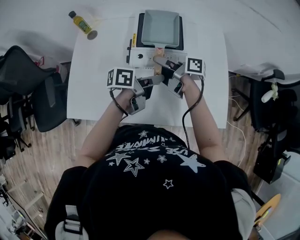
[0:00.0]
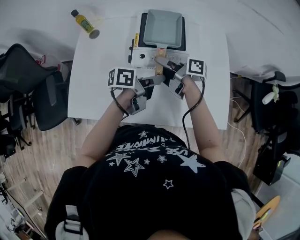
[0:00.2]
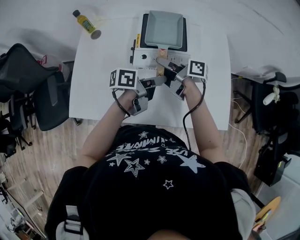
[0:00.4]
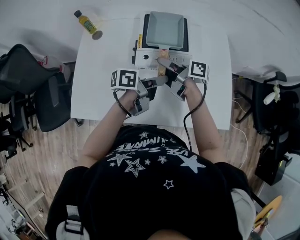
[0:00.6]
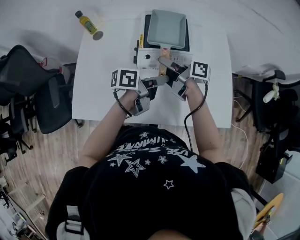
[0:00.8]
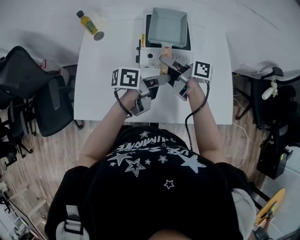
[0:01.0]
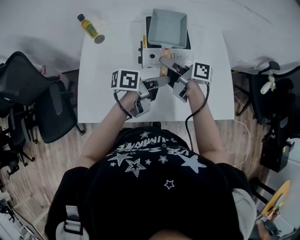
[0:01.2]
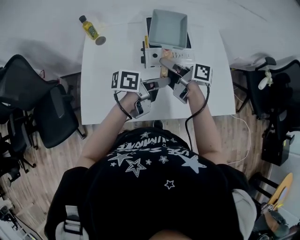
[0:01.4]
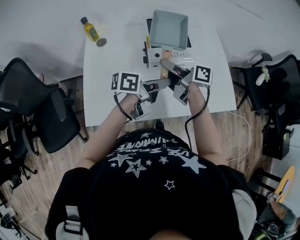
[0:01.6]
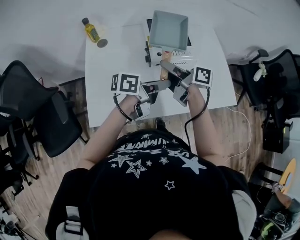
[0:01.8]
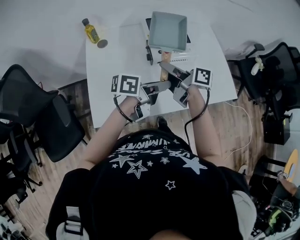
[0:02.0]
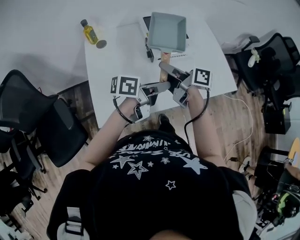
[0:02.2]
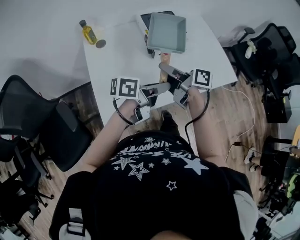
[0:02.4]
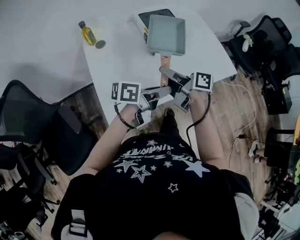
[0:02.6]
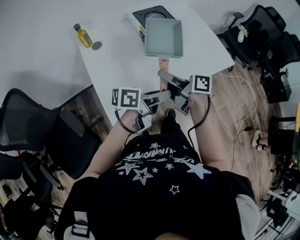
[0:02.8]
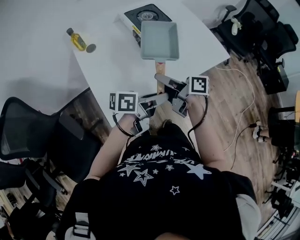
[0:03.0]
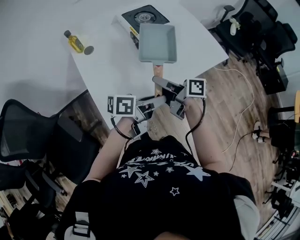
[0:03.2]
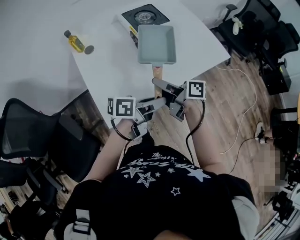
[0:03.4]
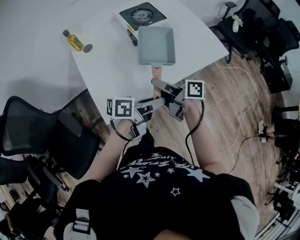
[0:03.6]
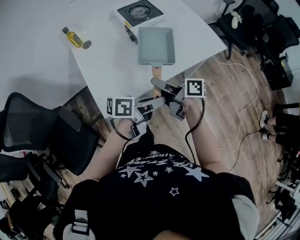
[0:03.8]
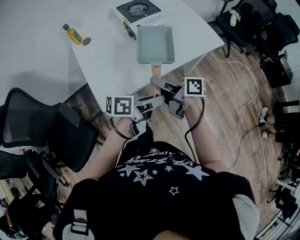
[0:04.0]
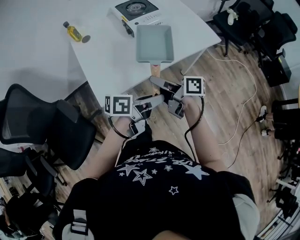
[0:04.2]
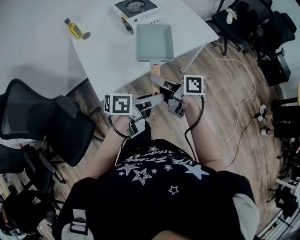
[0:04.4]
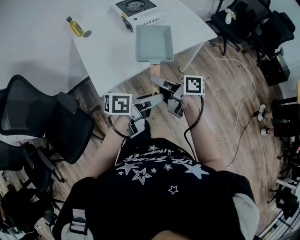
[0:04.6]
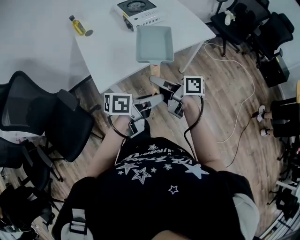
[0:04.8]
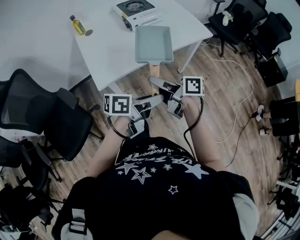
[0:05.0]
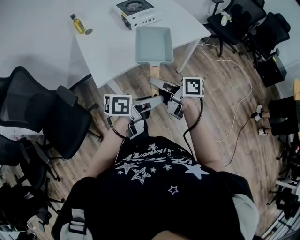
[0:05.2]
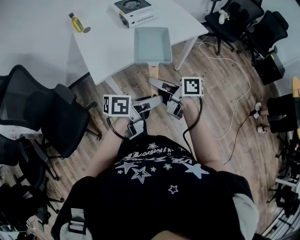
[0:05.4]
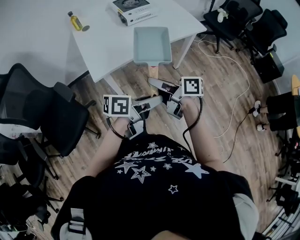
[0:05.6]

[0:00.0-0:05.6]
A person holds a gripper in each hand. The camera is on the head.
0:00.0 to 0:01.4: The right gripper moves upward and backward, approximately 10 cm; the left gripper shifts some 10 cm to the left, backward and upward.
0:01.4 to 0:02.8: The two grippers go some 20 cm backward and to the left. The left gripper swivels some 20 degrees.
0:02.8 to 0:04.2: The left gripper shifts by about 20 cm. Meanwhile the right gripper shifts by some 20 cm.
0:04.2 to 0:05.6: The right gripper ends up roughly 15 cm from where it was, while the left gripper changes place by roughly 15 cm.

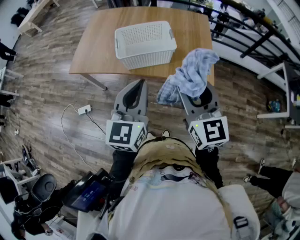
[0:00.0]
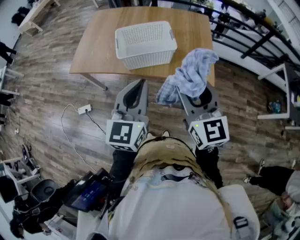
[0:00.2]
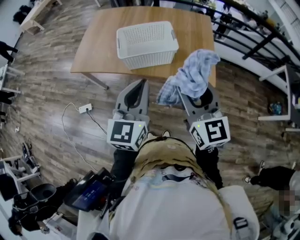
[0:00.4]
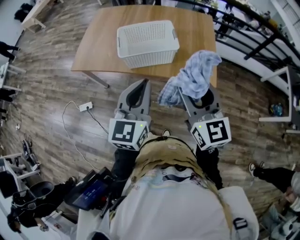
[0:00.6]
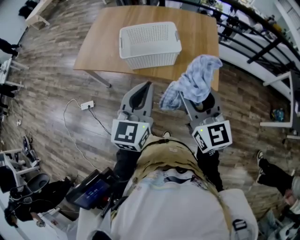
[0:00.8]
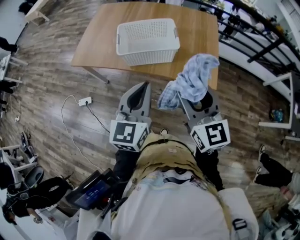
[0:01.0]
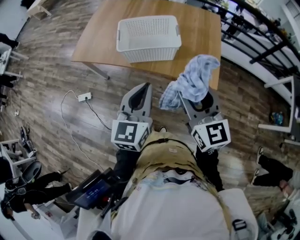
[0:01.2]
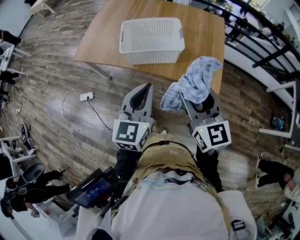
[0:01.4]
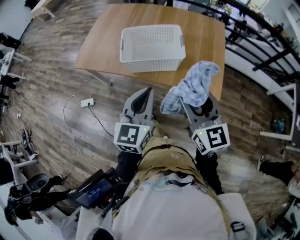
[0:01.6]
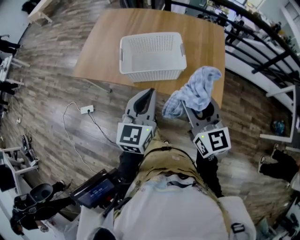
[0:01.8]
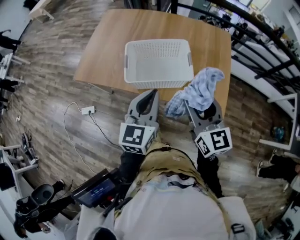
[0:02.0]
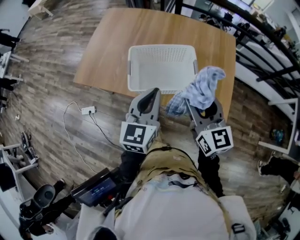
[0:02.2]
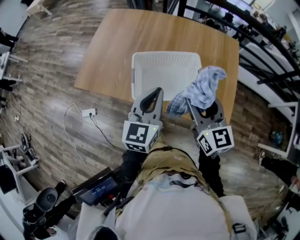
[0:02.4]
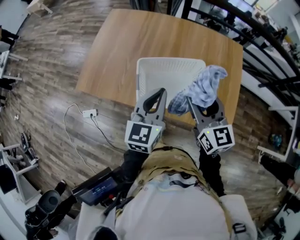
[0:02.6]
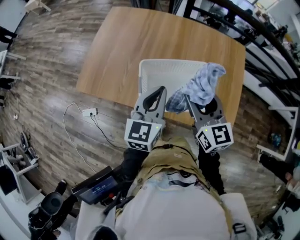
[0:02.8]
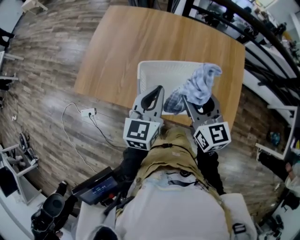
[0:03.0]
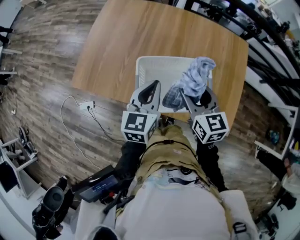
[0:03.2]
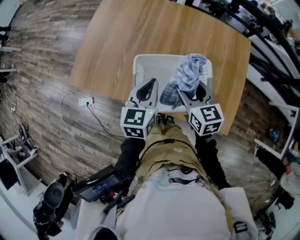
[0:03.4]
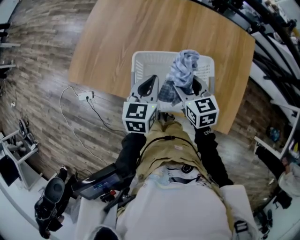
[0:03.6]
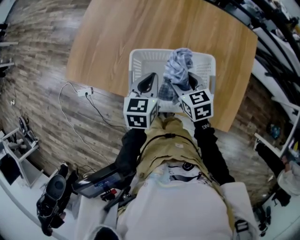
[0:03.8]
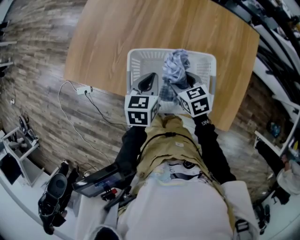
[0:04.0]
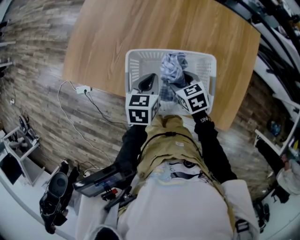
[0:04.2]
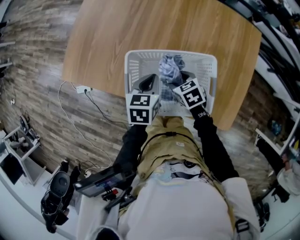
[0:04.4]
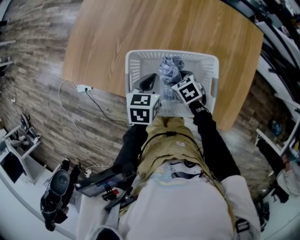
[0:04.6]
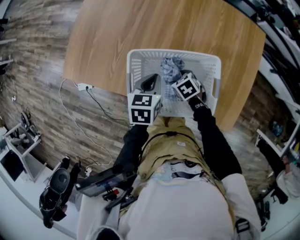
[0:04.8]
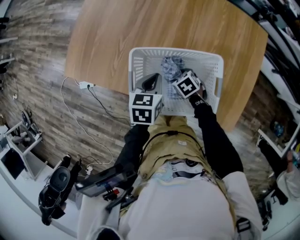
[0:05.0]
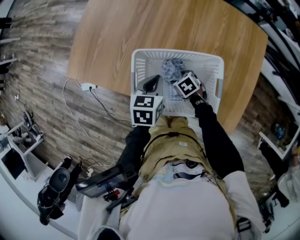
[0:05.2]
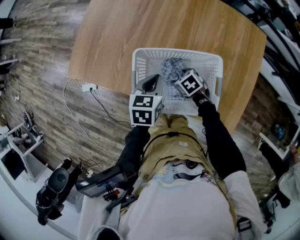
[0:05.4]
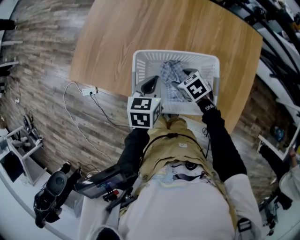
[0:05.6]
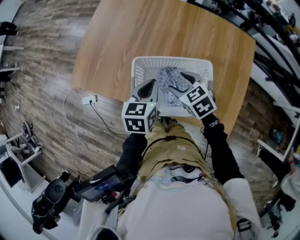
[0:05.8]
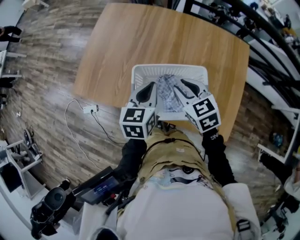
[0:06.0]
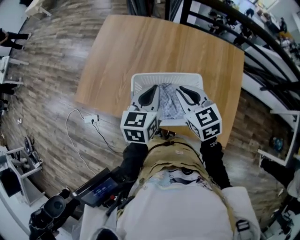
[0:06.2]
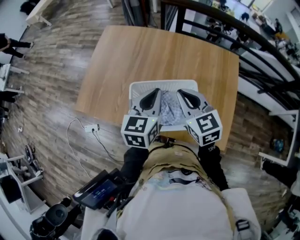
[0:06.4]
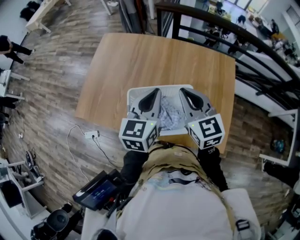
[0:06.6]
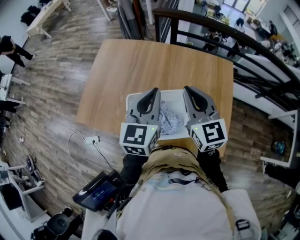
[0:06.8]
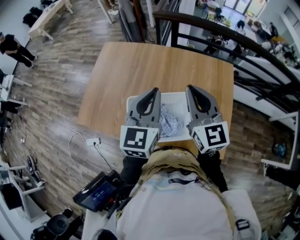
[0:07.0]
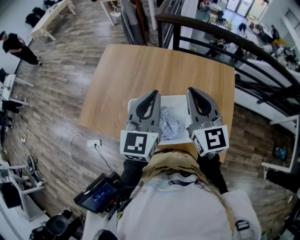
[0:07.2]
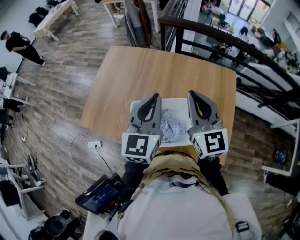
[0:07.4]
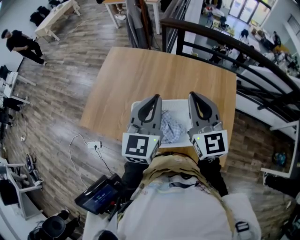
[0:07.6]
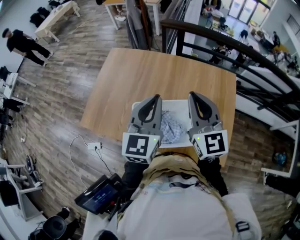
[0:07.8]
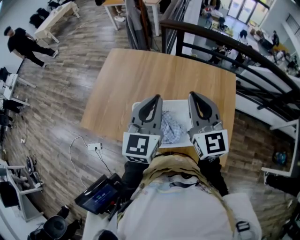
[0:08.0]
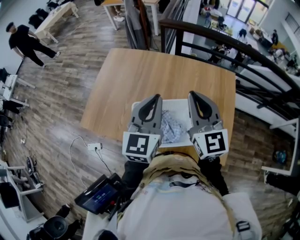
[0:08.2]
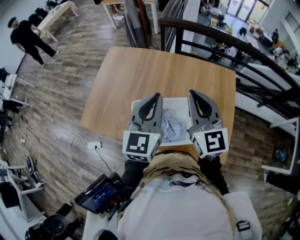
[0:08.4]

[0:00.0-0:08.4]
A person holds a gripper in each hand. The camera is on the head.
0:00.0 to 0:01.4: The right gripper moves about 5 cm. Meanwhile the left gripper shifts roughly 5 cm downward.
0:01.4 to 0:02.8: Both grippers move forward, approximately 30 cm.
0:02.8 to 0:04.2: The grippers both shift downward by roughly 20 cm. The right gripper tilts its fingers some 40 degrees downward, while the left gripper points its fingers some 30 degrees further downward.
0:04.2 to 0:05.6: The right gripper moves about 15 cm downward and comes back.
0:05.6 to 0:07.0: The grippers both shift upward by roughly 30 cm. The left gripper tips its fingers upward by approximately 40 degrees. Meanwhile the right gripper tilts its fingers approximately 60 degrees upward, and closes.
0:07.0 to 0:08.4: The grippers make only small movements.

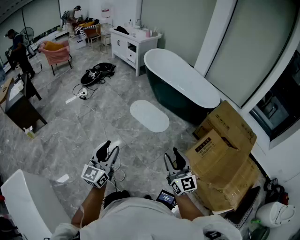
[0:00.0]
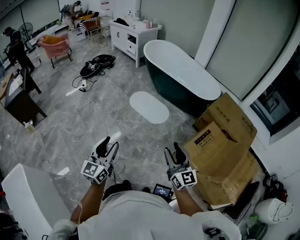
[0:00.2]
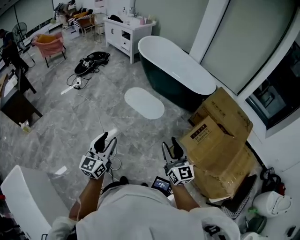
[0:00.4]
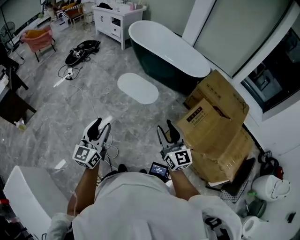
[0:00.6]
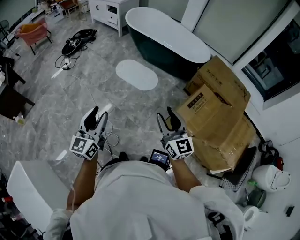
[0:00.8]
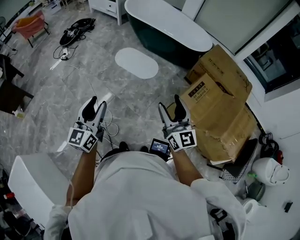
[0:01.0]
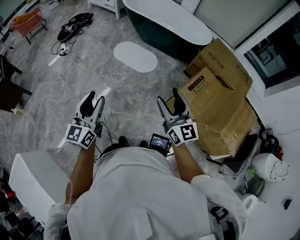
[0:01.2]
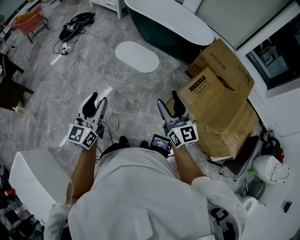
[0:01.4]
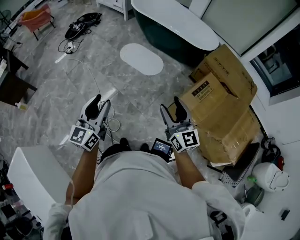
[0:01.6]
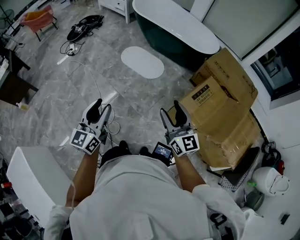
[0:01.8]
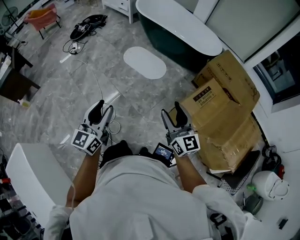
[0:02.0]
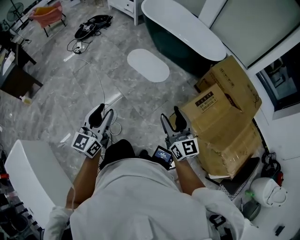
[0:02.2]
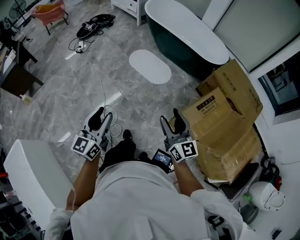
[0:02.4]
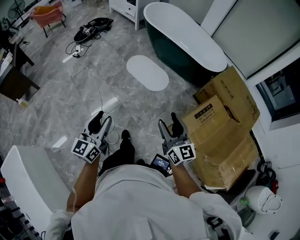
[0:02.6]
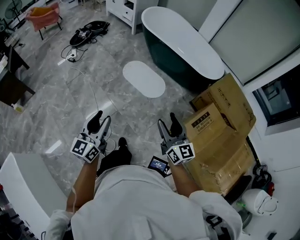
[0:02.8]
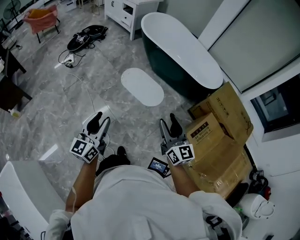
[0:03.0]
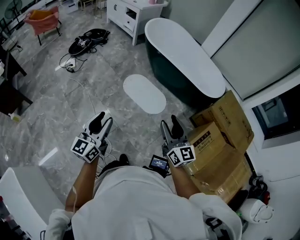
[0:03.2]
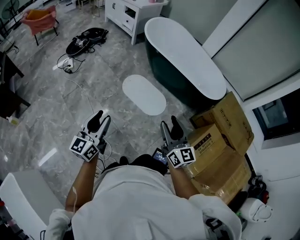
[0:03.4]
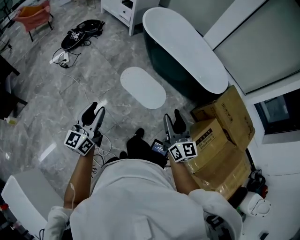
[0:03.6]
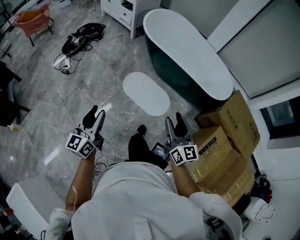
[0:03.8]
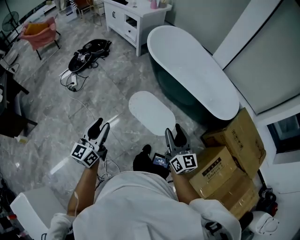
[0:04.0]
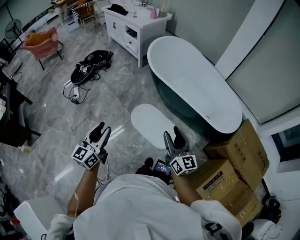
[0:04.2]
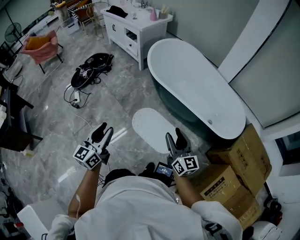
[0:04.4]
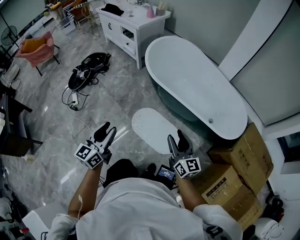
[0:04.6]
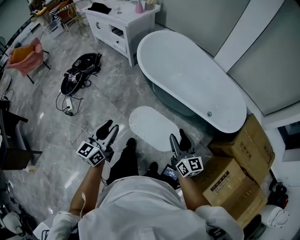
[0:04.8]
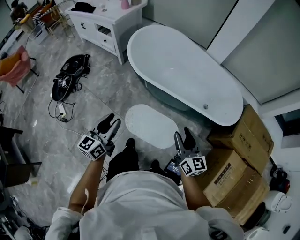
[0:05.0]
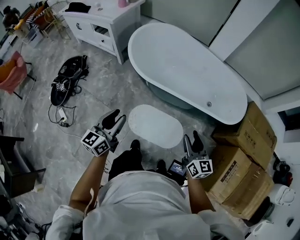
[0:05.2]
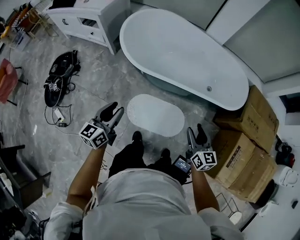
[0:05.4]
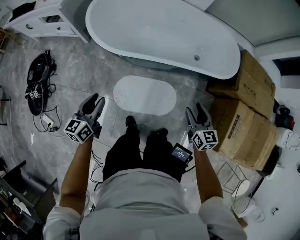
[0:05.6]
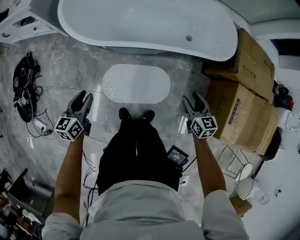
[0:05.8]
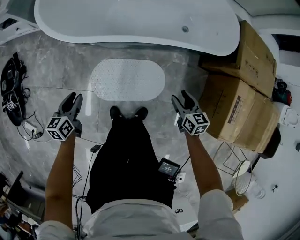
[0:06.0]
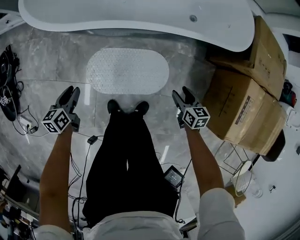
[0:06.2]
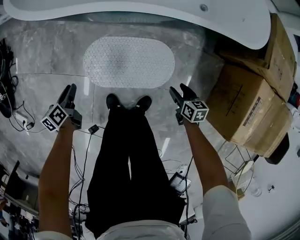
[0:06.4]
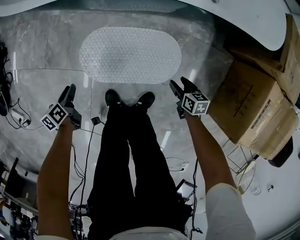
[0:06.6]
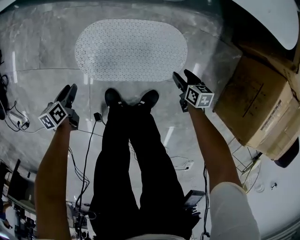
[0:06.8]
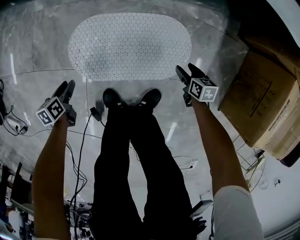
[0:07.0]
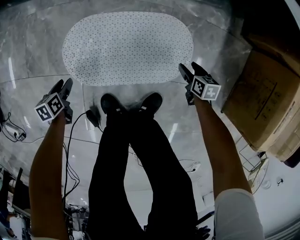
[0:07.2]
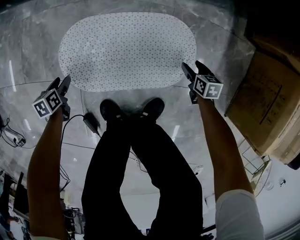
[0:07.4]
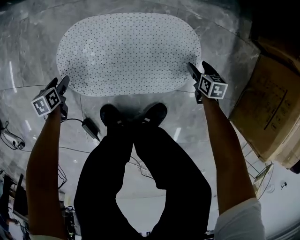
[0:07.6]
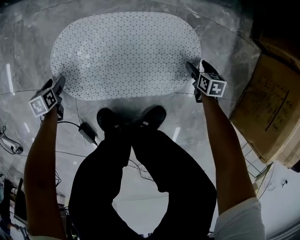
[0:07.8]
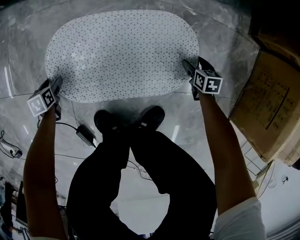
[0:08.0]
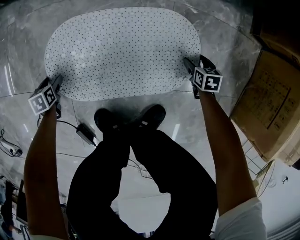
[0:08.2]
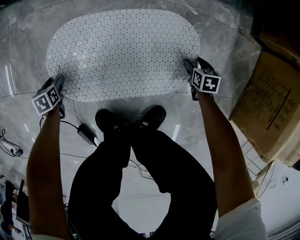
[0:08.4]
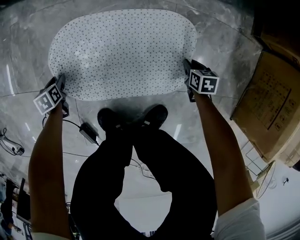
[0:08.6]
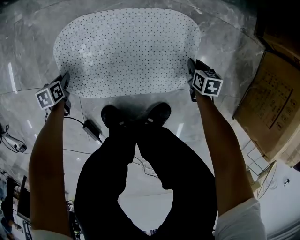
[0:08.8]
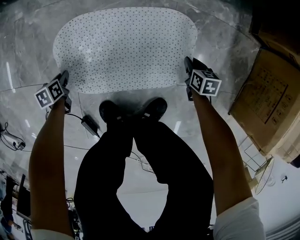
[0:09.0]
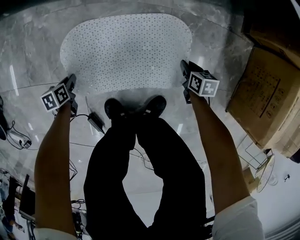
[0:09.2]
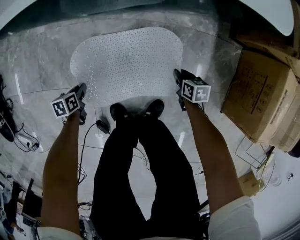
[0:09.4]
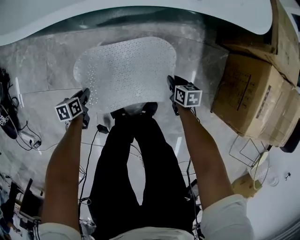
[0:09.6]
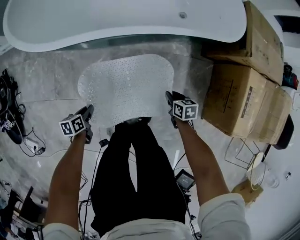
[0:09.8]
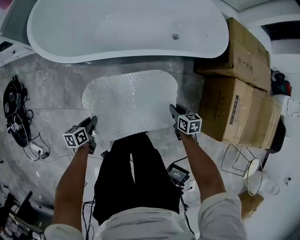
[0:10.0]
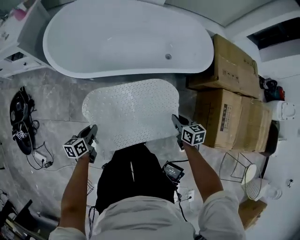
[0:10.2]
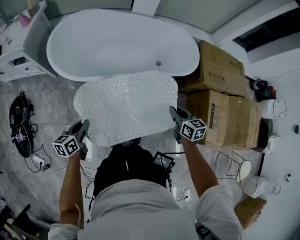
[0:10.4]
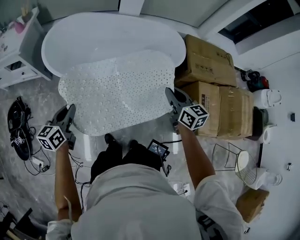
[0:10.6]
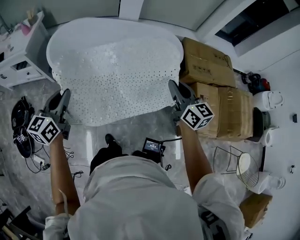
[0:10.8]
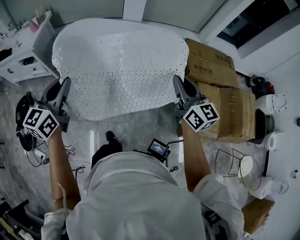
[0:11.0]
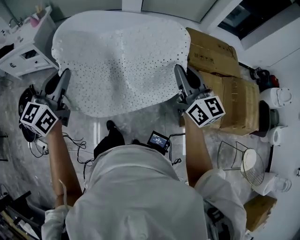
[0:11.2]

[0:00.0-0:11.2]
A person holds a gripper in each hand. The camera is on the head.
0:00.0 to 0:01.6: The right gripper ends up about 5 cm from where it was; the left gripper goes roughly 5 cm to the right.
0:01.6 to 0:03.2: Both grippers travel together forward, roughly 25 cm.
0:03.2 to 0:04.8: The two grippers travel together, forward, roughly 50 cm.
0:04.8 to 0:06.4: The grippers both shift downward by approximately 60 cm. The left gripper tips its fingers downward by some 40 degrees, while the right gripper points its fingers roughly 50 degrees further downward.
0:06.4 to 0:08.0: Both grippers move downward, approximately 40 cm. The left gripper rotates some 40 degrees, and opens its fingers.
0:08.0 to 0:09.6: Both grippers move upward, approximately 30 cm. The left gripper changes its angle by approximately 20 degrees, and closes its fingers. The right gripper closes up.
0:09.6 to 0:11.2: Both grippers travel together upward, roughly 90 cm. The right gripper points its fingers roughly 60 degrees further upward; the left gripper tips its fingers upward by roughly 50 degrees.
